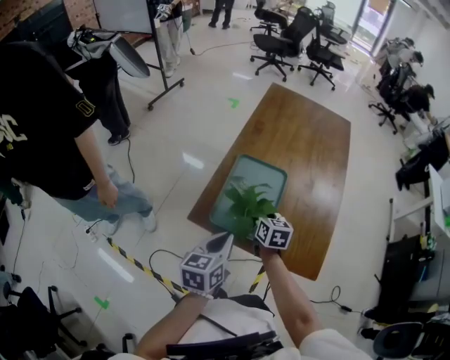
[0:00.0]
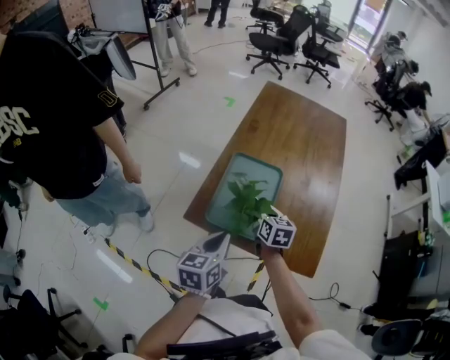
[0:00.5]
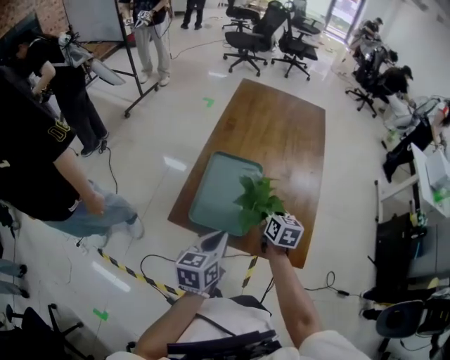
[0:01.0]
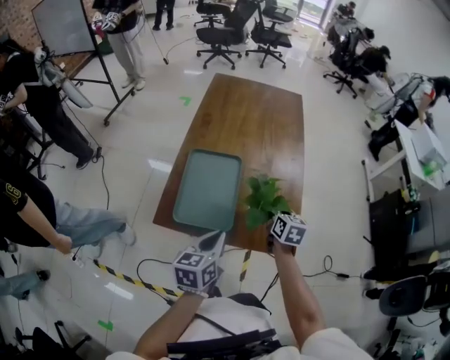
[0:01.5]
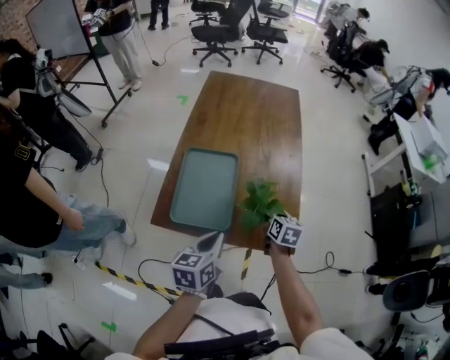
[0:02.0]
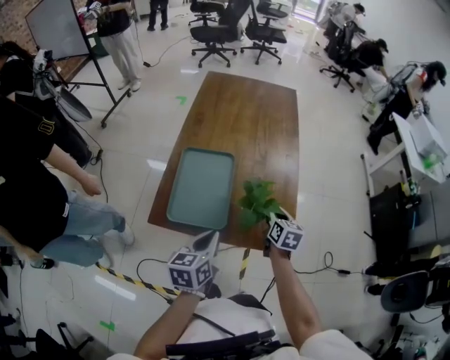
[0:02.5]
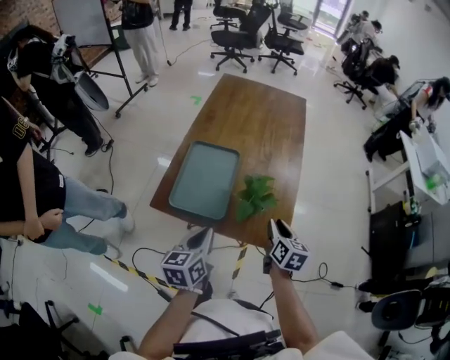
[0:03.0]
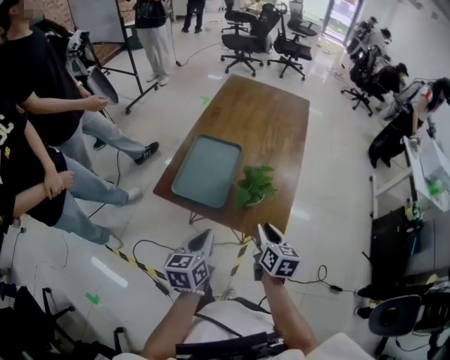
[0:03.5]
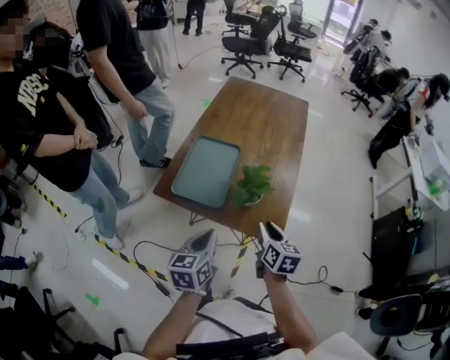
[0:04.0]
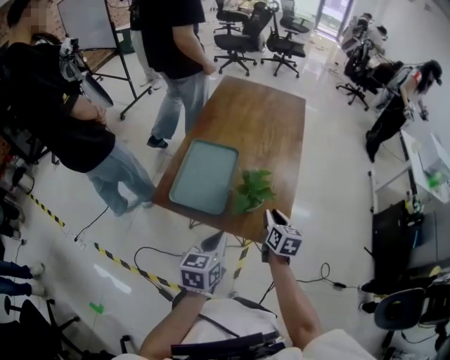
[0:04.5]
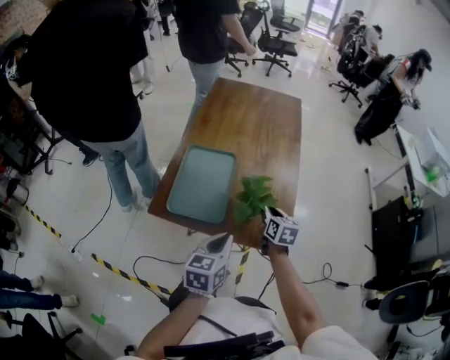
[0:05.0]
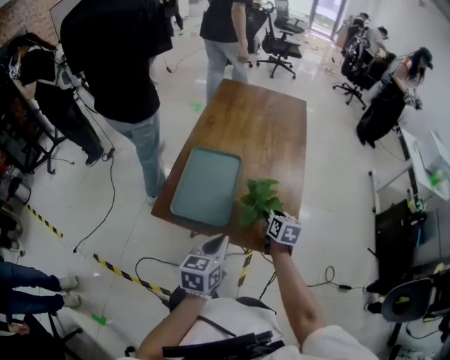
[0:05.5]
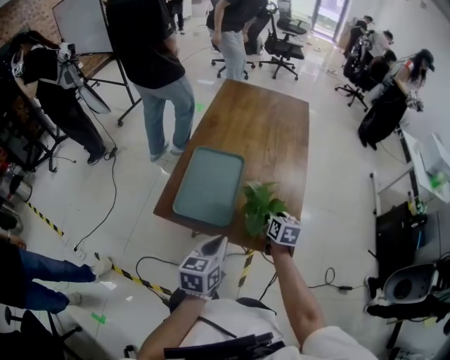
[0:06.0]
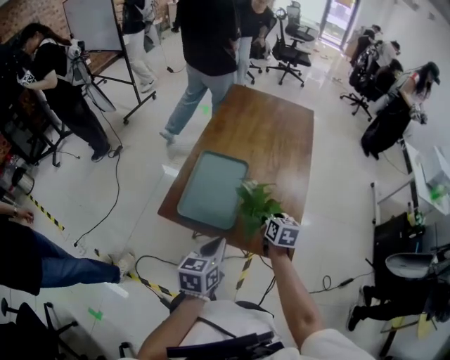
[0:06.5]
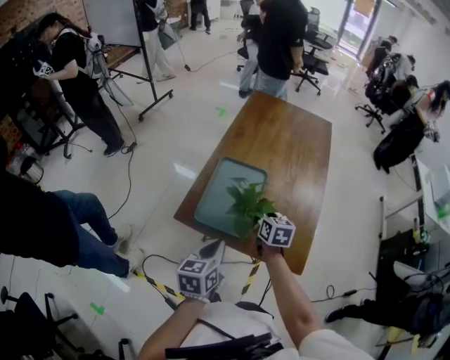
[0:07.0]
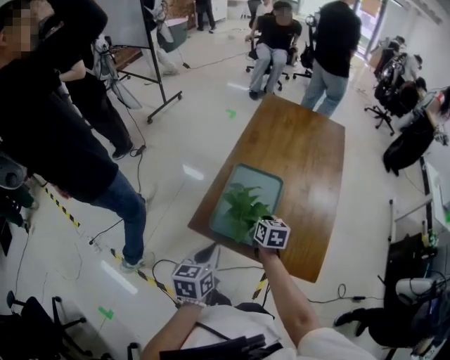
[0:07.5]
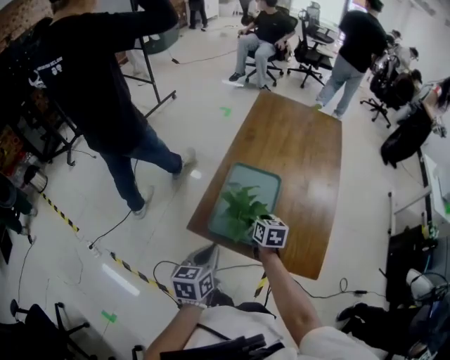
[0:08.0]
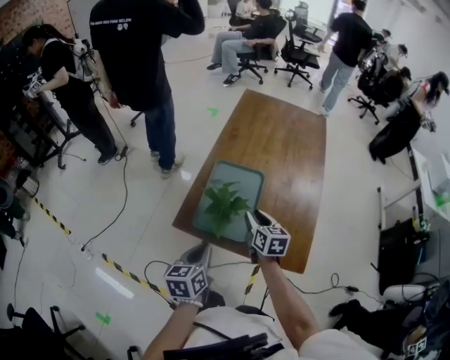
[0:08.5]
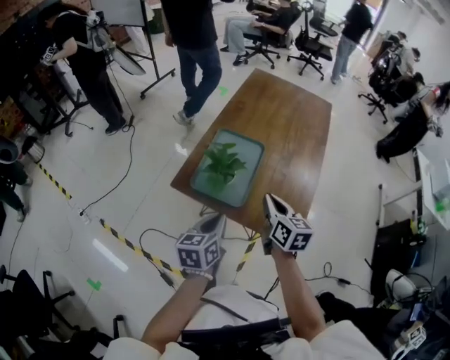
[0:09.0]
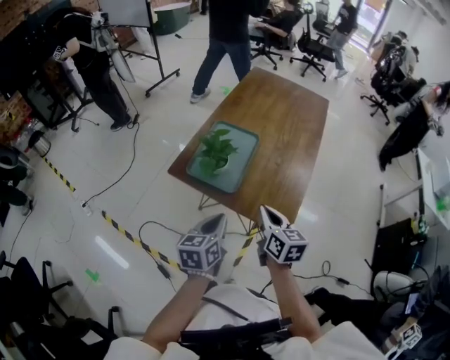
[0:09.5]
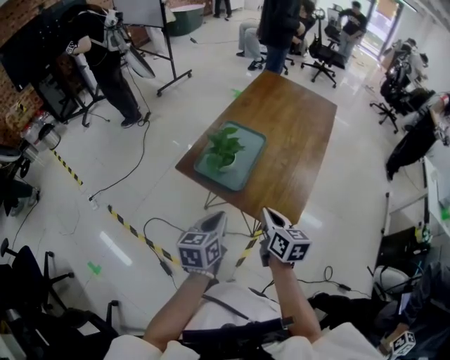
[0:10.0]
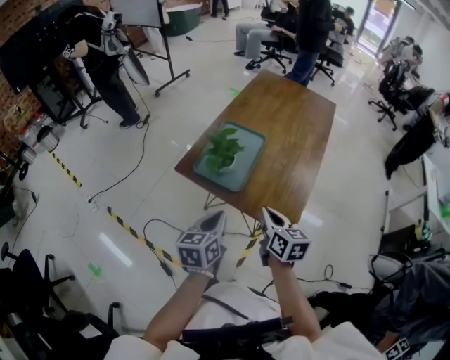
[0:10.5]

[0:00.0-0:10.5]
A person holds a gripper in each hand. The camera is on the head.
0:00.0 to 0:02.0: The right gripper moves to the right, roughly 25 cm, and turns by about 20 degrees, while the left gripper heads to the right, covering about 10 cm.
0:02.0 to 0:04.0: The right gripper travels backward and upward by roughly 20 cm, and opens, while the left gripper is displaced backward by about 10 cm.
0:04.0 to 0:06.5: The left gripper moves forward, roughly 5 cm. The right gripper is displaced forward by approximately 15 cm, and closes.
0:06.5 to 0:08.5: The two grippers go roughly 10 cm to the left. The right gripper opens up.
0:08.5 to 0:10.5: The left gripper is displaced backward and to the right by roughly 15 cm. The right gripper shifts about 20 cm backward, and closes its fingers.

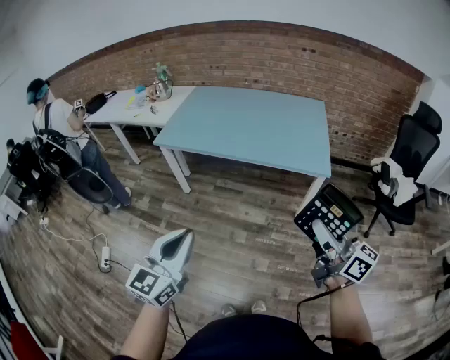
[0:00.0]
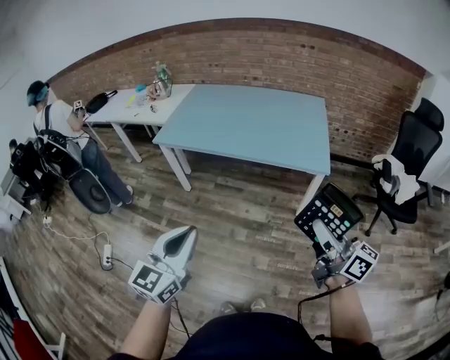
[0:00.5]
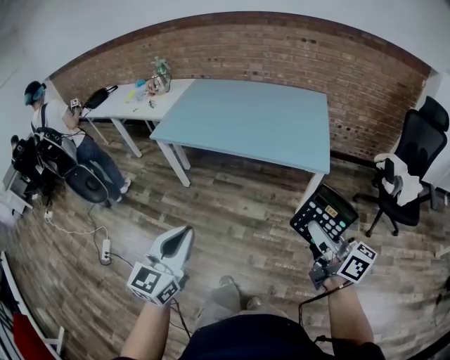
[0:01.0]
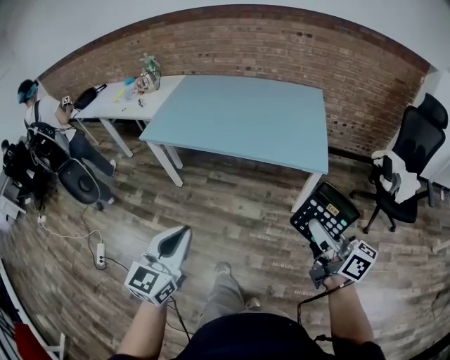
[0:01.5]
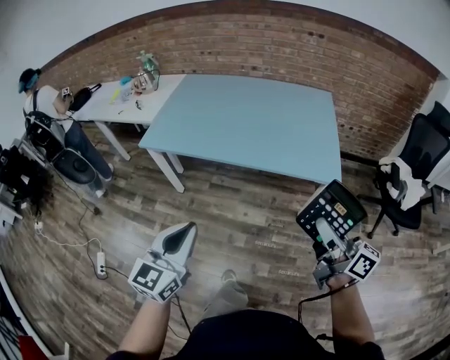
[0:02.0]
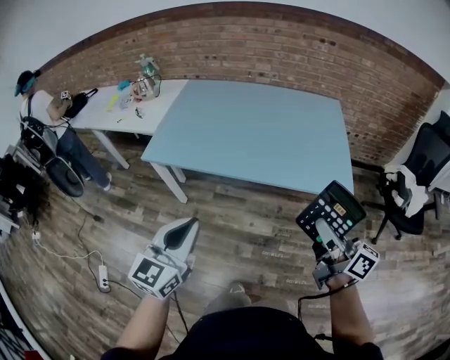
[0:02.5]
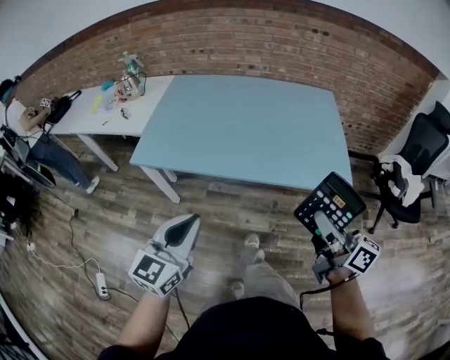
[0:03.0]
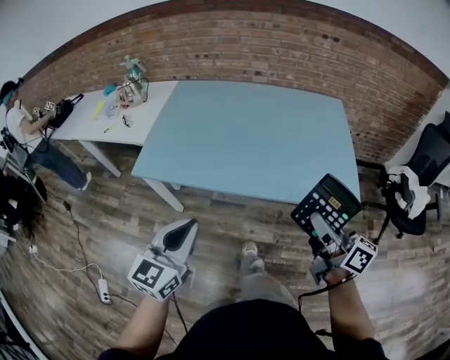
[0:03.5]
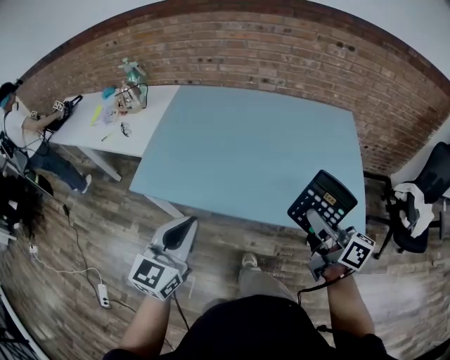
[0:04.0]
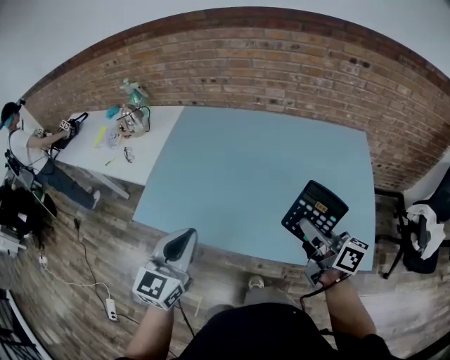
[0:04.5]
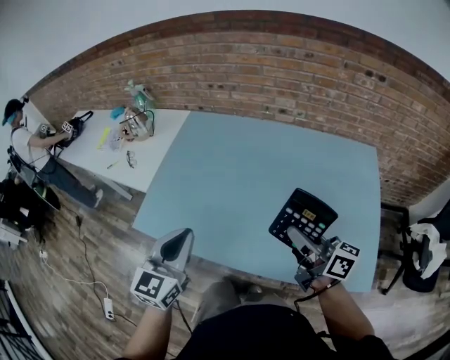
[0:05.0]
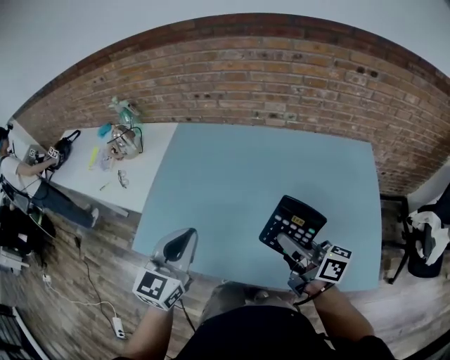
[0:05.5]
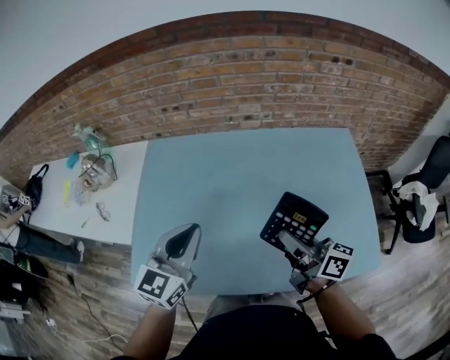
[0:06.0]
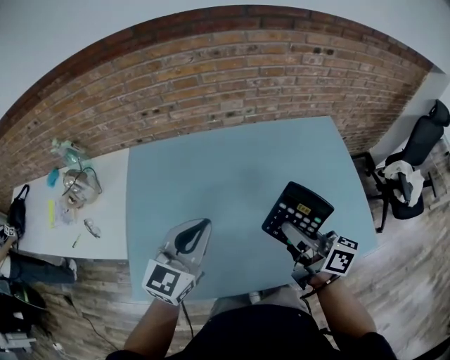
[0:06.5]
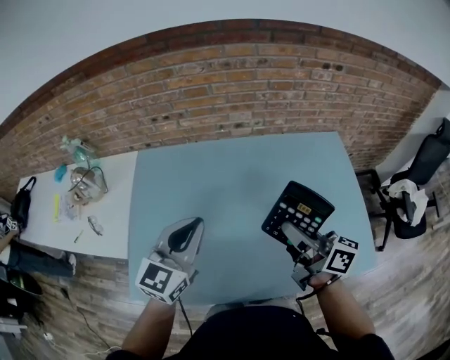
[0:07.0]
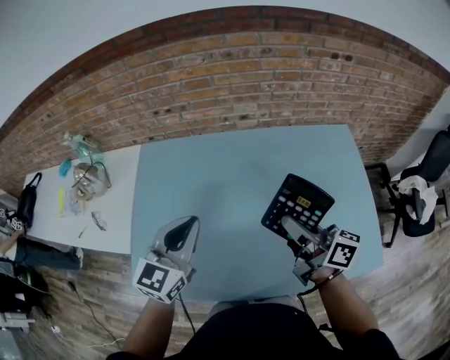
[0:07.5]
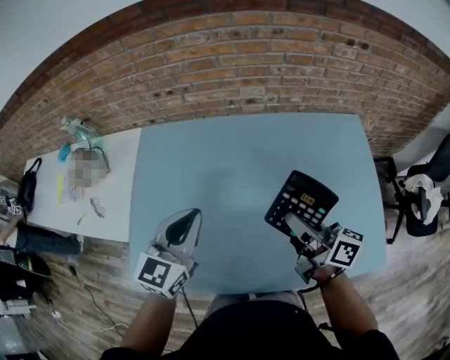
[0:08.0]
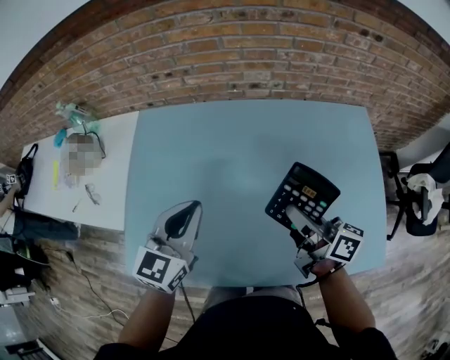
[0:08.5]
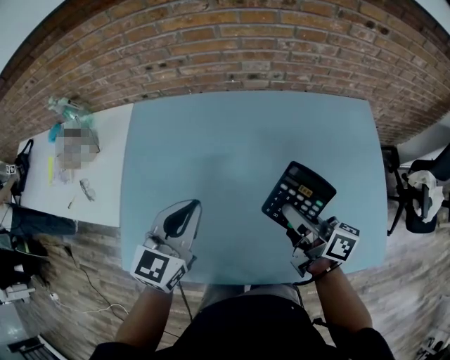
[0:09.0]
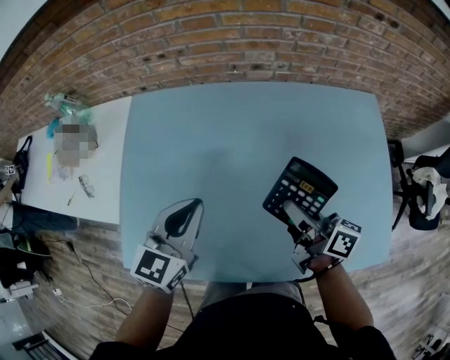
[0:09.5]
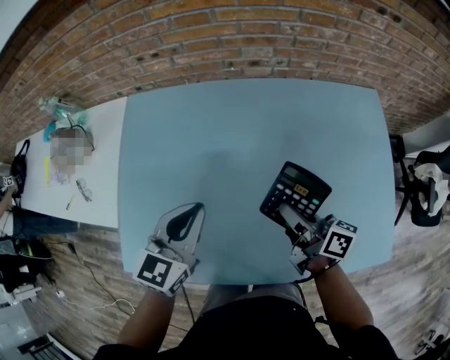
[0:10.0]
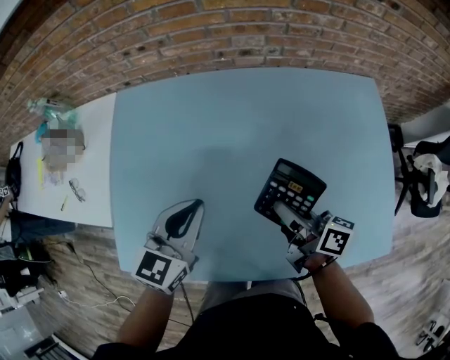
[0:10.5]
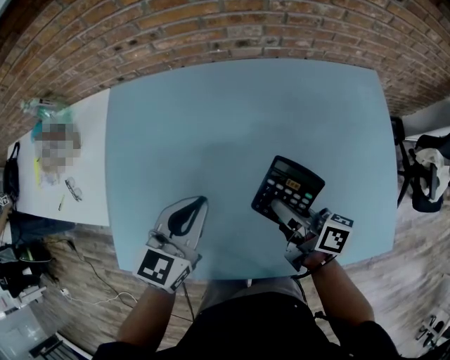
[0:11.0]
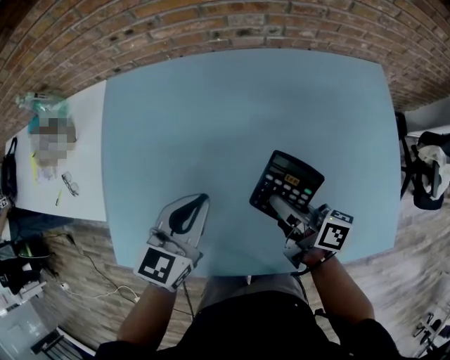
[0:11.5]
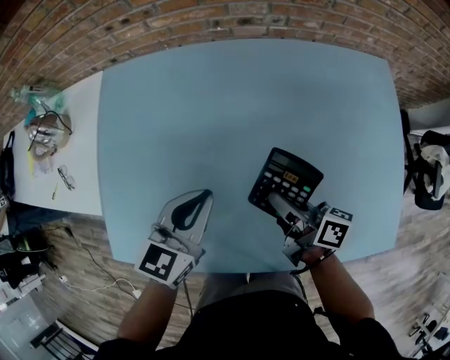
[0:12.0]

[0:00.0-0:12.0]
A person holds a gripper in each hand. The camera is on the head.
0:00.0 to 0:02.0: The grippers both shift forward by about 15 cm.
0:02.0 to 0:04.0: The grippers both shift forward by some 30 cm.
0:04.0 to 0:06.0: Both grippers travel together forward, roughly 30 cm.
0:06.0 to 0:08.0: Both grippers move forward, about 5 cm.
0:08.0 to 0:10.0: The grippers both shift downward by roughly 10 cm.
0:10.0 to 0:12.0: The grippers both shift downward by roughly 5 cm.

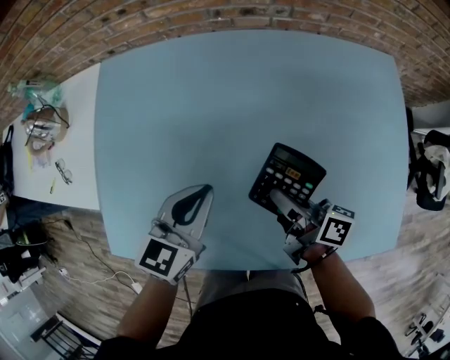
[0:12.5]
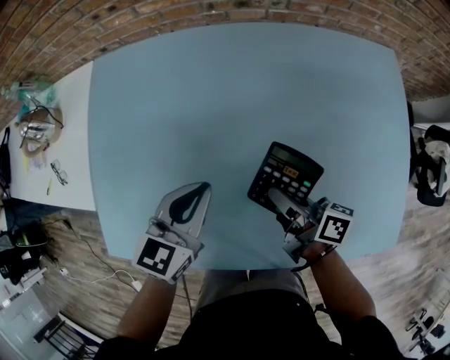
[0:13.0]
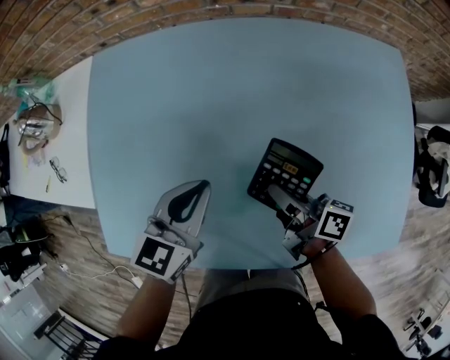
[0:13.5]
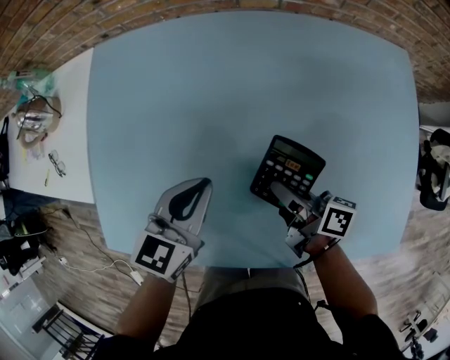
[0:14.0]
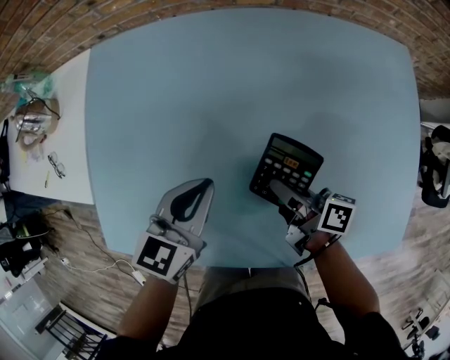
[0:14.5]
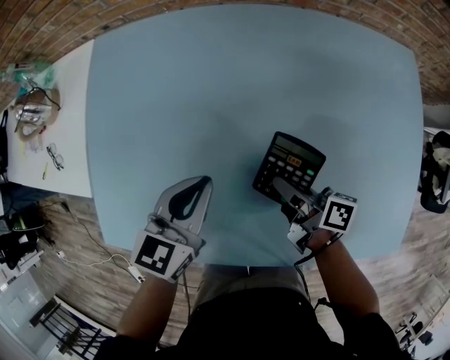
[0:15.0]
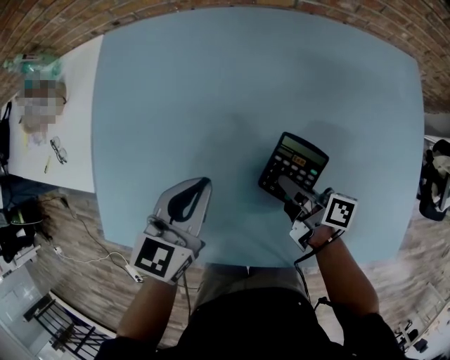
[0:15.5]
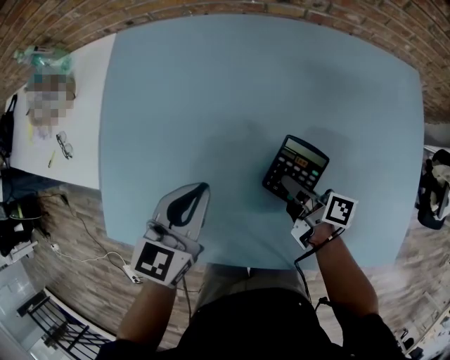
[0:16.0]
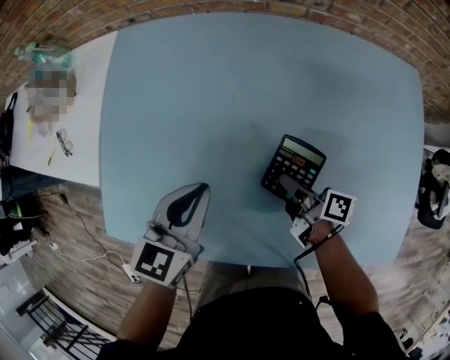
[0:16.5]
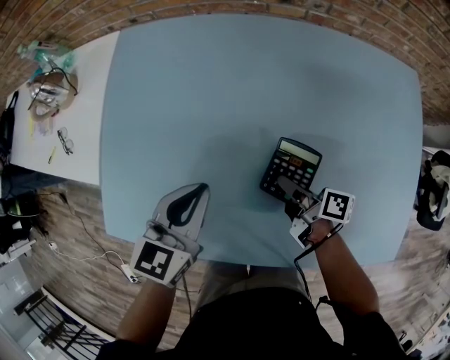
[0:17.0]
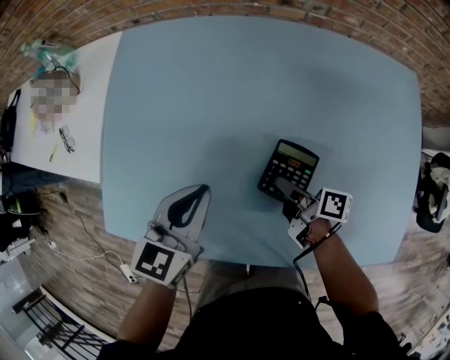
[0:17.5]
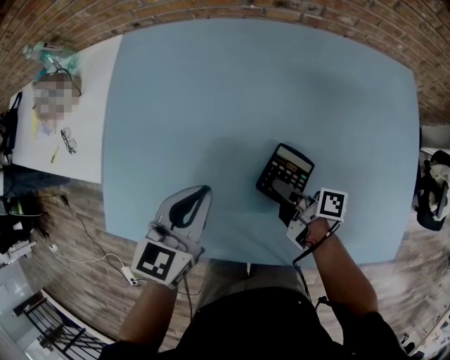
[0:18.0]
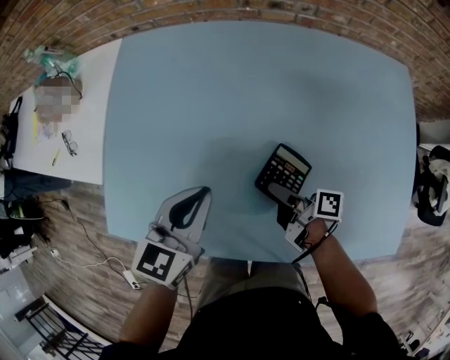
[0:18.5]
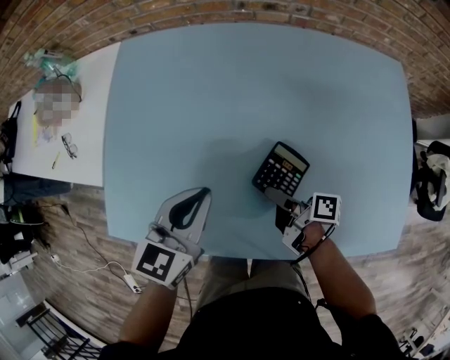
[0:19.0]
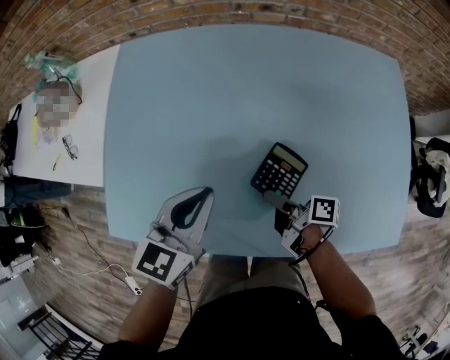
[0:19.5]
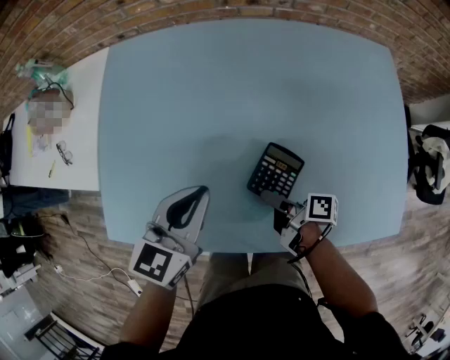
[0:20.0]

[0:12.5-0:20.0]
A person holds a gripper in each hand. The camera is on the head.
0:12.5 to 0:14.5: The right gripper is displaced downward by about 5 cm.
0:14.5 to 0:16.5: The left gripper moves approximately 5 cm.
0:16.5 to 0:18.0: The grippers stay close to where they were, moving slightly.
0:18.0 to 0:20.0: The right gripper goes roughly 5 cm backward, and opens up.
